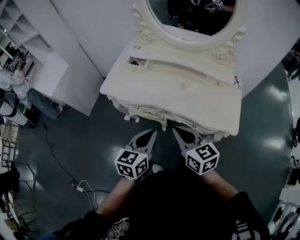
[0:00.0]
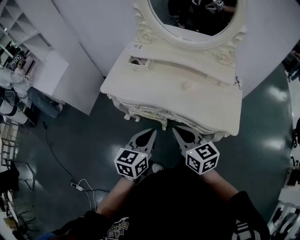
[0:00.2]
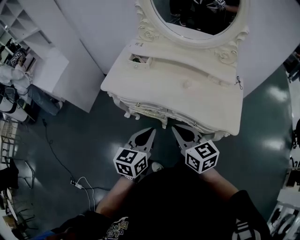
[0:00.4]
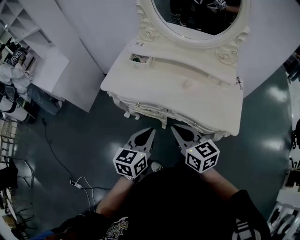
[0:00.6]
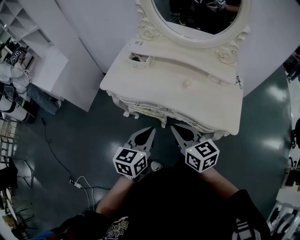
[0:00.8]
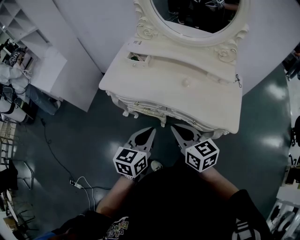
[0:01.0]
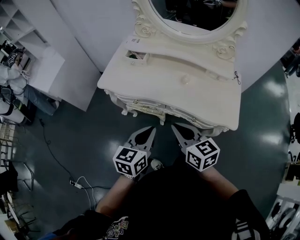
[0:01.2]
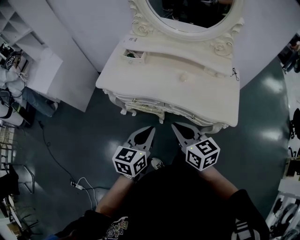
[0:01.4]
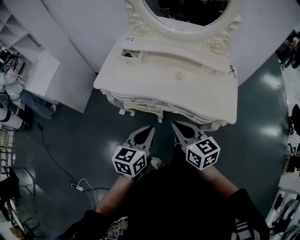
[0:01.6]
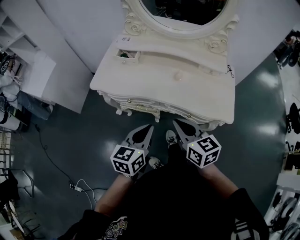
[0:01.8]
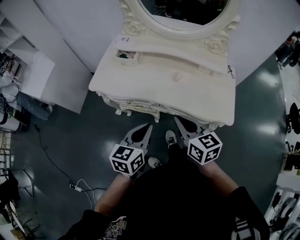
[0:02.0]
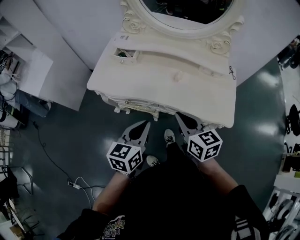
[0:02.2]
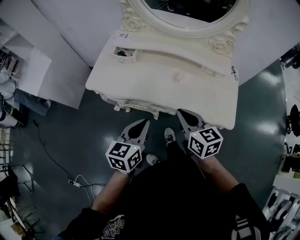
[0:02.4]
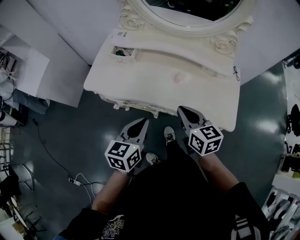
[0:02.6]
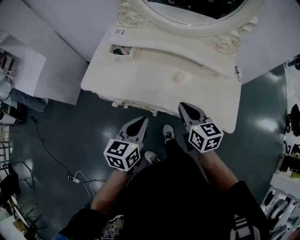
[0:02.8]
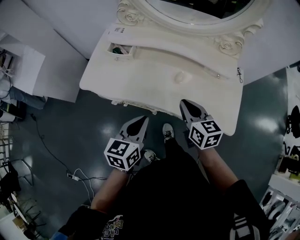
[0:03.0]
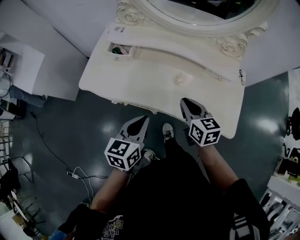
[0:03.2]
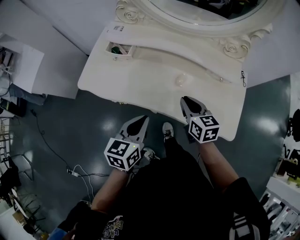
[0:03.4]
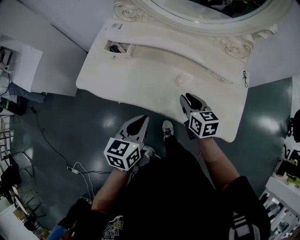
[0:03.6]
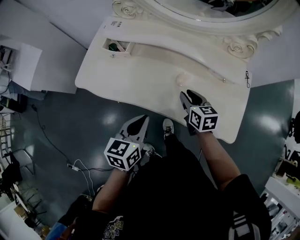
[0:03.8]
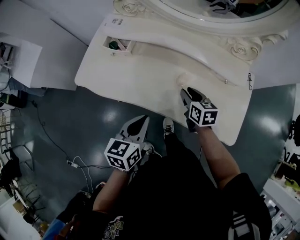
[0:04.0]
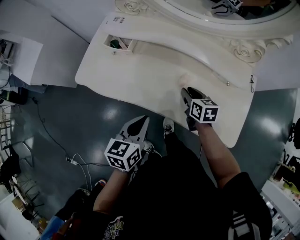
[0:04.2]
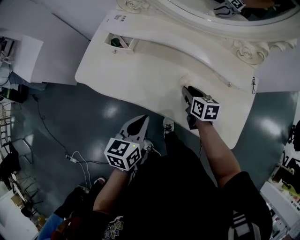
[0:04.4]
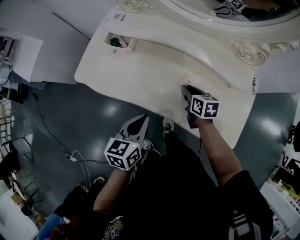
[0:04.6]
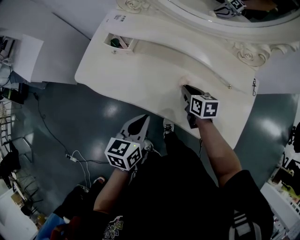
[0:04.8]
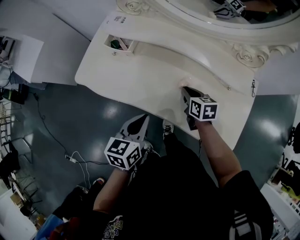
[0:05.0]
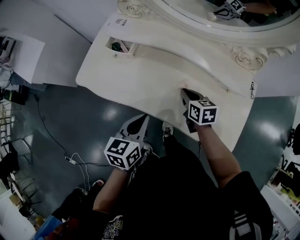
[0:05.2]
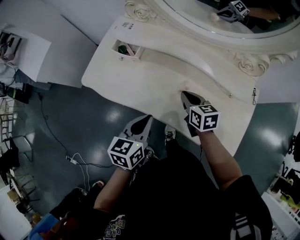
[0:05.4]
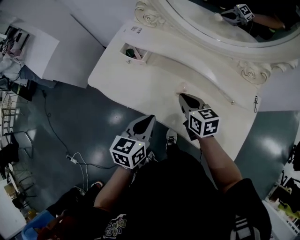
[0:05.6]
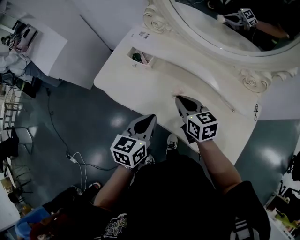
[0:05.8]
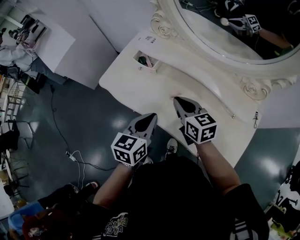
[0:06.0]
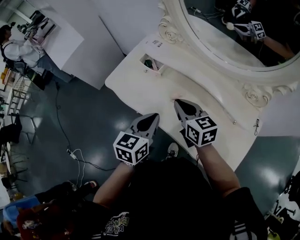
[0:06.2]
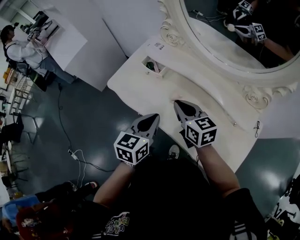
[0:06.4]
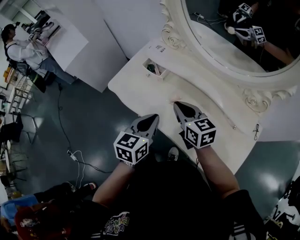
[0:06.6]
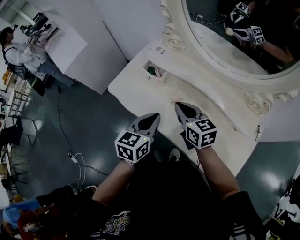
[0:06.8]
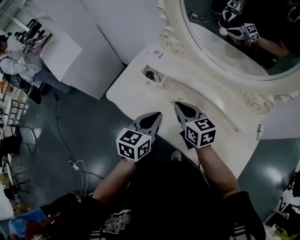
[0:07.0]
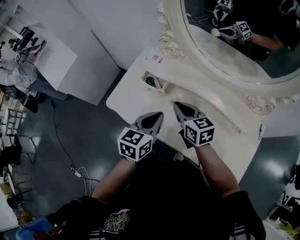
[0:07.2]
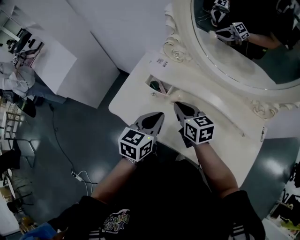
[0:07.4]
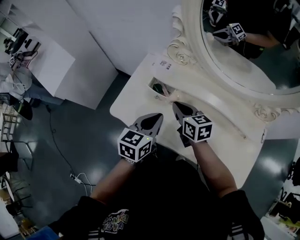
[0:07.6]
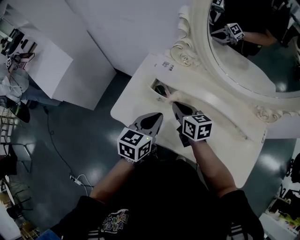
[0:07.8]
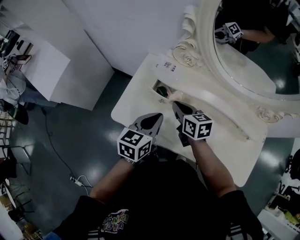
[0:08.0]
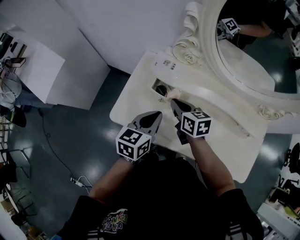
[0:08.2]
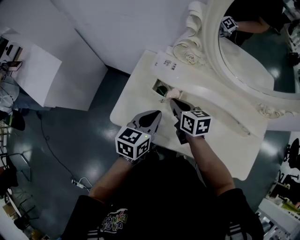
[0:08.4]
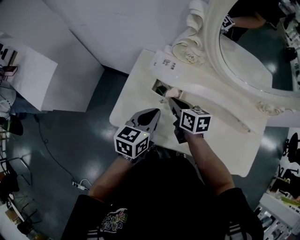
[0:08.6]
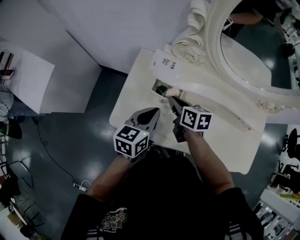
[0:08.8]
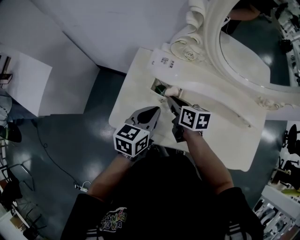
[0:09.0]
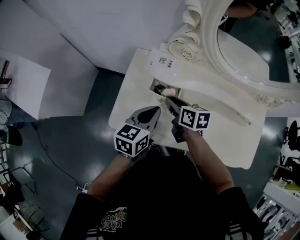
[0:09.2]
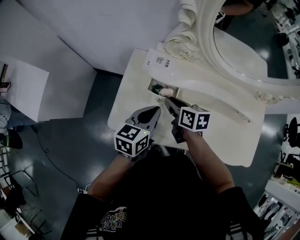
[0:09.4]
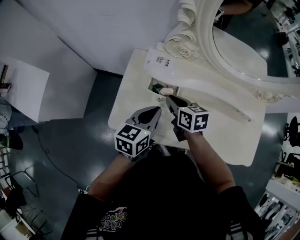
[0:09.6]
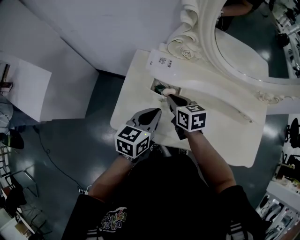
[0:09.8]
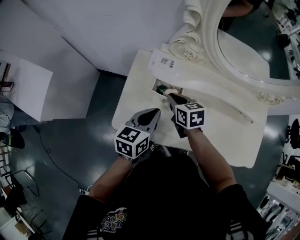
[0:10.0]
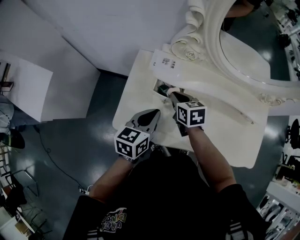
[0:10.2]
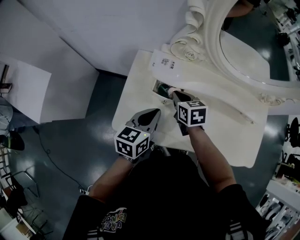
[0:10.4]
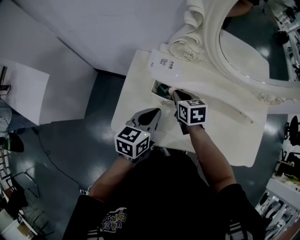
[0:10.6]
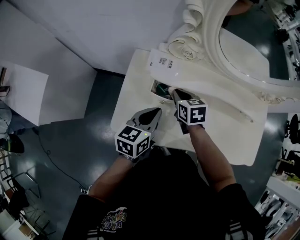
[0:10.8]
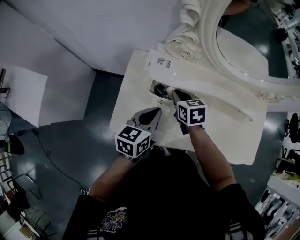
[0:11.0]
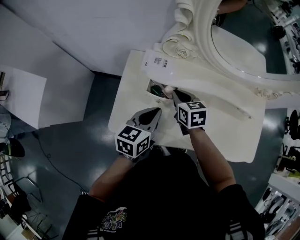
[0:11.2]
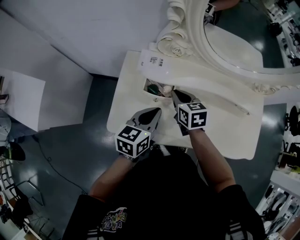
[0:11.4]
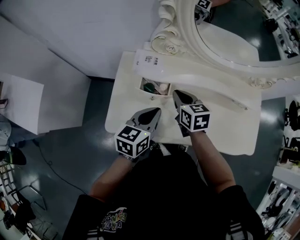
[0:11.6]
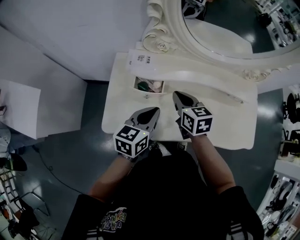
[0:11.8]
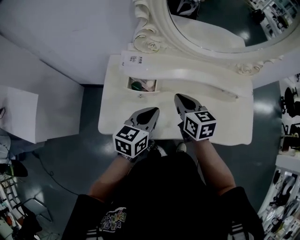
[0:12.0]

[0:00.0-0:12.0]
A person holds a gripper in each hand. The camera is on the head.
0:00.0 to 0:01.6: The grippers stay close to where they were, moving slightly.
0:01.6 to 0:03.0: The right gripper moves forward and to the right, approximately 20 cm, while the left gripper is displaced forward by approximately 15 cm.
0:03.0 to 0:04.4: The left gripper shifts by some 5 cm, while the right gripper moves downward and forward, roughly 20 cm, and opens.
0:04.4 to 0:06.0: The right gripper shifts roughly 20 cm upward and to the left, changes its angle by some 30 degrees, and closes up. The left gripper heads upward and forward, covering roughly 10 cm.
0:06.0 to 0:07.6: The grippers both shift forward and to the left by approximately 15 cm.
0:07.6 to 0:09.0: The right gripper moves downward, forward and to the left, some 10 cm, and rotates roughly 30 degrees. Meanwhile the left gripper is displaced forward and to the left by approximately 10 cm.
0:09.0 to 0:10.4: The right gripper turns by about 20 degrees.
0:10.4 to 0:12.0: The left gripper goes about 10 cm to the right. The right gripper is displaced to the right, upward and backward by some 15 cm.

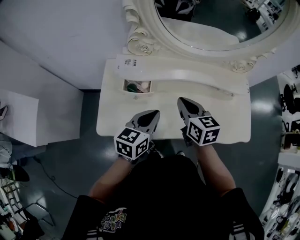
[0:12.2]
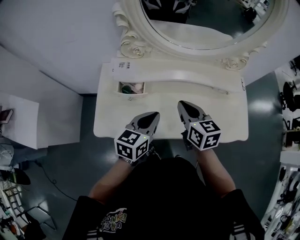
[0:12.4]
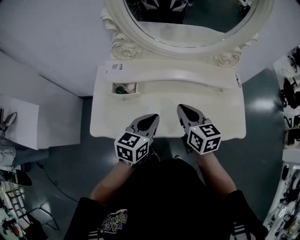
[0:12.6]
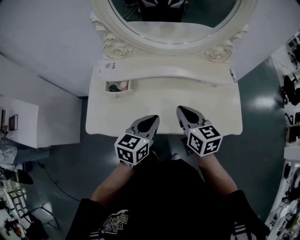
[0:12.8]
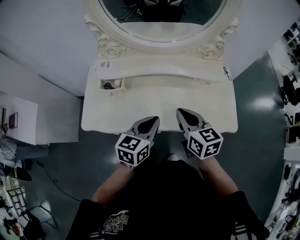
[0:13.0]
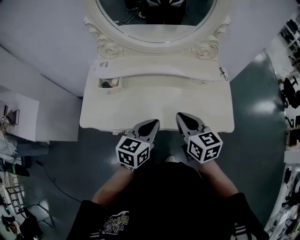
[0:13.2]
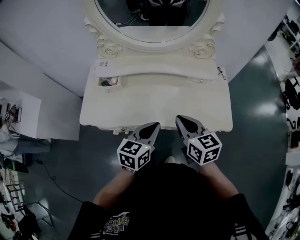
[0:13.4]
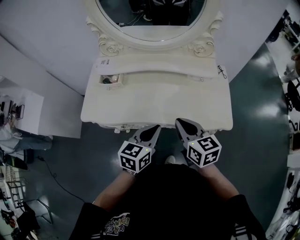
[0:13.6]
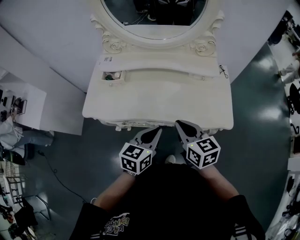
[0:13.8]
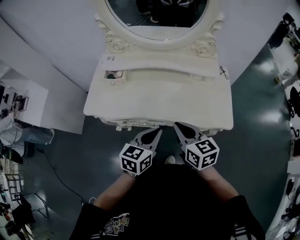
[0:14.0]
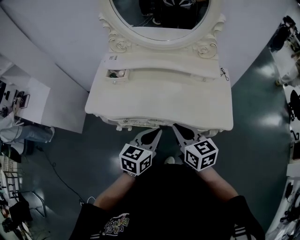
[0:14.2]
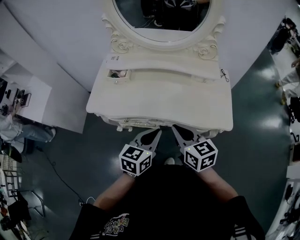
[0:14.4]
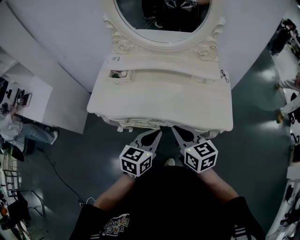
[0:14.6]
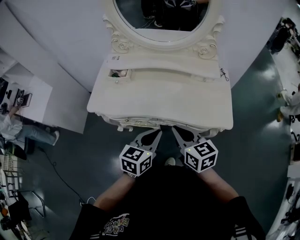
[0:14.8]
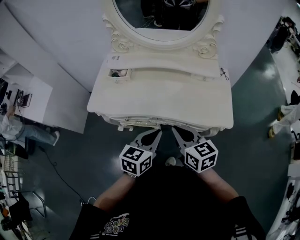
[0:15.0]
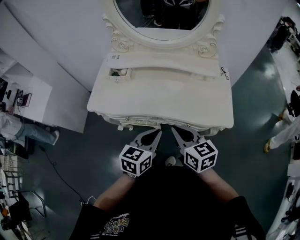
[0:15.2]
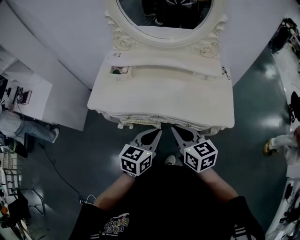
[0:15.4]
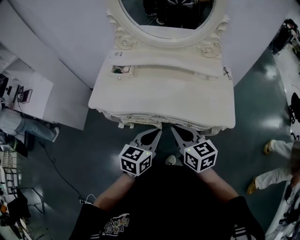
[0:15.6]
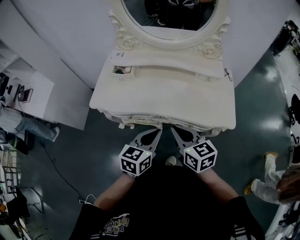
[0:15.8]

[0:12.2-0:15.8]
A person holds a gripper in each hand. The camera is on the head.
0:12.2 to 0:14.0: The right gripper moves backward and to the right, approximately 30 cm; the left gripper is displaced to the right and backward by approximately 30 cm.
0:14.0 to 0:15.8: The left gripper shifts by roughly 5 cm. Meanwhile the right gripper shifts by some 5 cm.

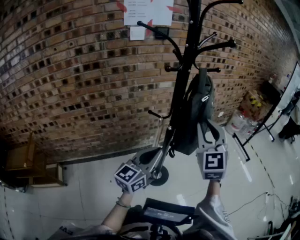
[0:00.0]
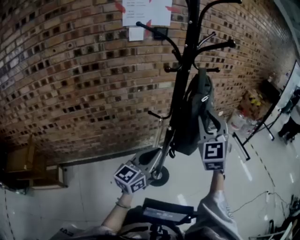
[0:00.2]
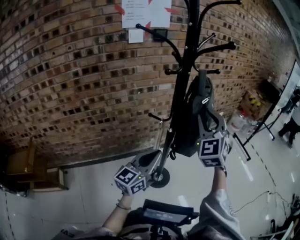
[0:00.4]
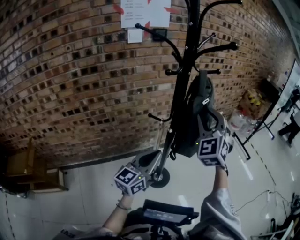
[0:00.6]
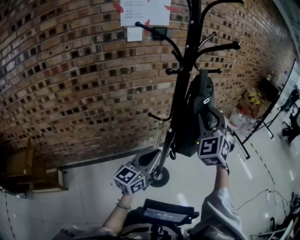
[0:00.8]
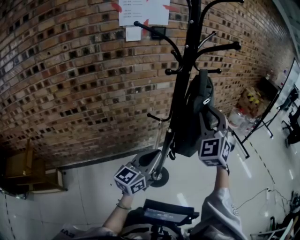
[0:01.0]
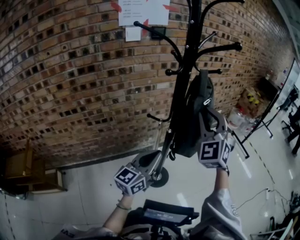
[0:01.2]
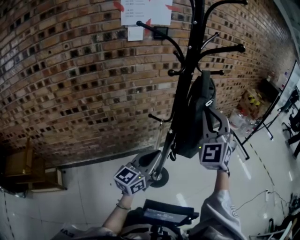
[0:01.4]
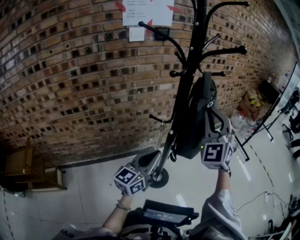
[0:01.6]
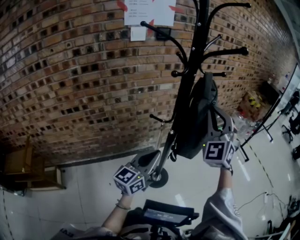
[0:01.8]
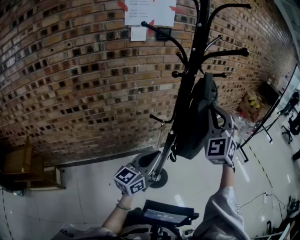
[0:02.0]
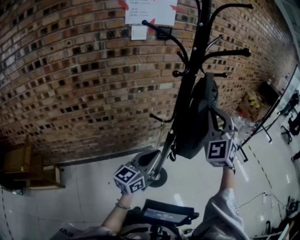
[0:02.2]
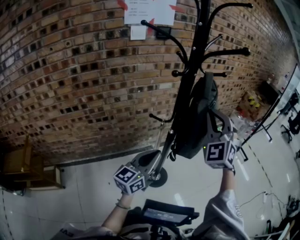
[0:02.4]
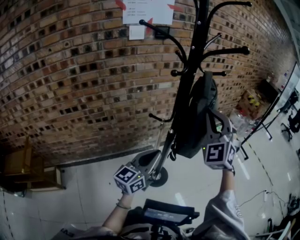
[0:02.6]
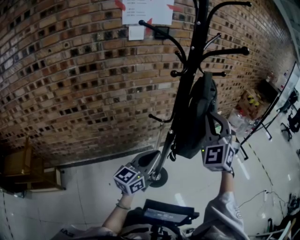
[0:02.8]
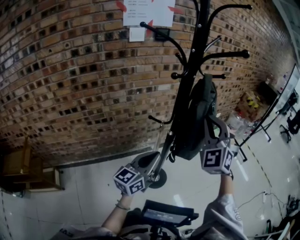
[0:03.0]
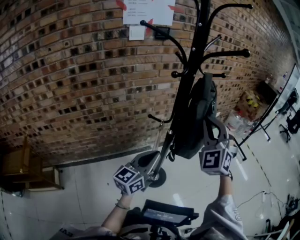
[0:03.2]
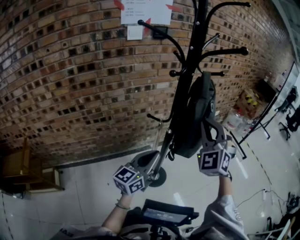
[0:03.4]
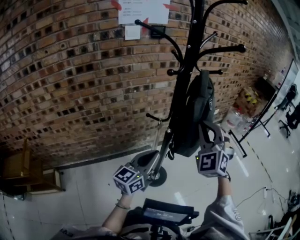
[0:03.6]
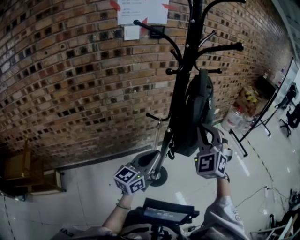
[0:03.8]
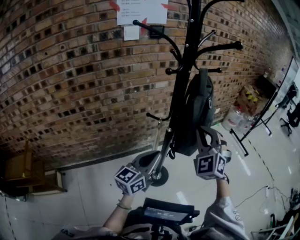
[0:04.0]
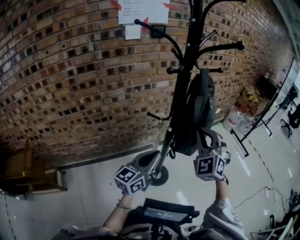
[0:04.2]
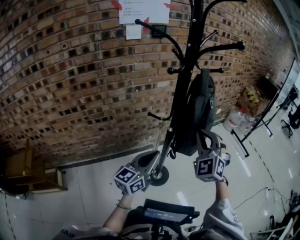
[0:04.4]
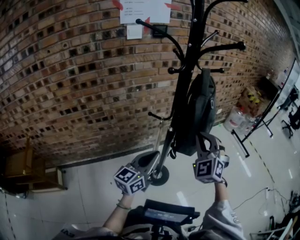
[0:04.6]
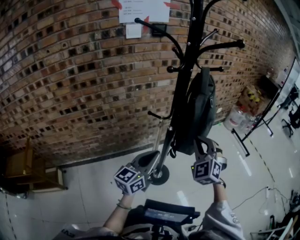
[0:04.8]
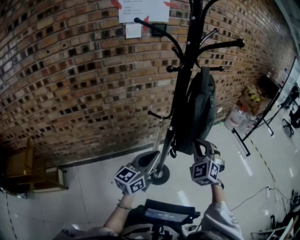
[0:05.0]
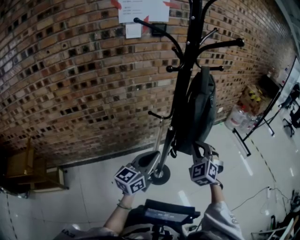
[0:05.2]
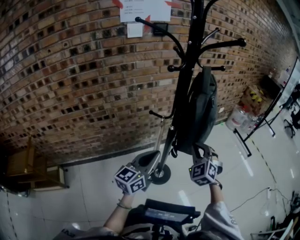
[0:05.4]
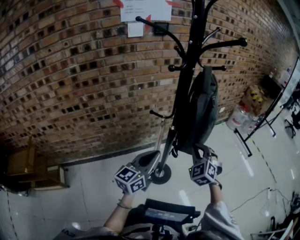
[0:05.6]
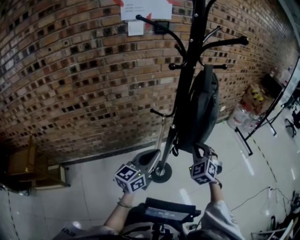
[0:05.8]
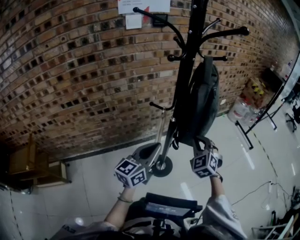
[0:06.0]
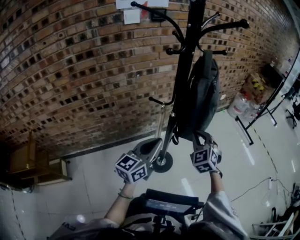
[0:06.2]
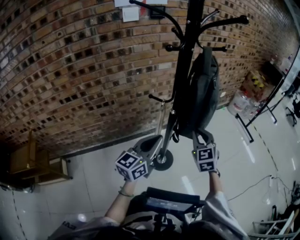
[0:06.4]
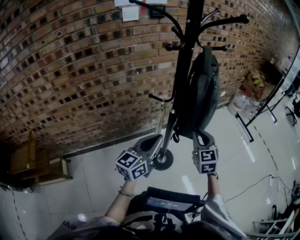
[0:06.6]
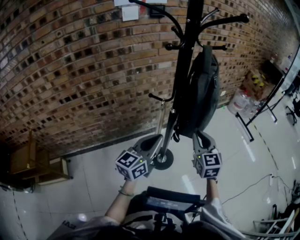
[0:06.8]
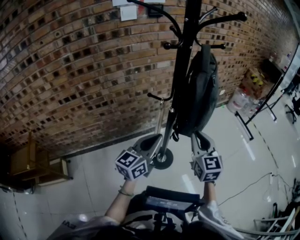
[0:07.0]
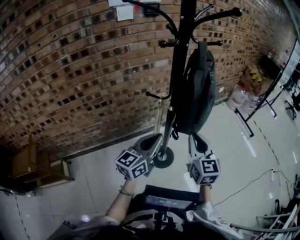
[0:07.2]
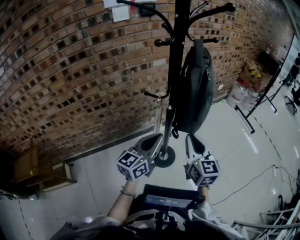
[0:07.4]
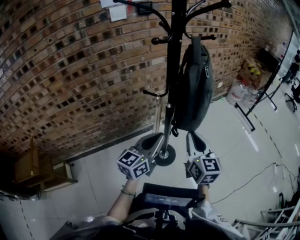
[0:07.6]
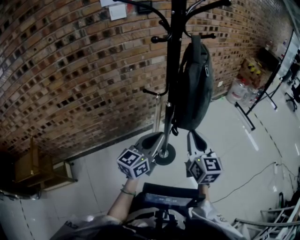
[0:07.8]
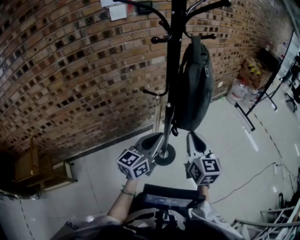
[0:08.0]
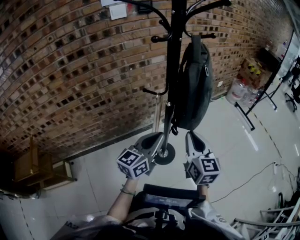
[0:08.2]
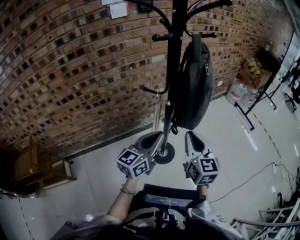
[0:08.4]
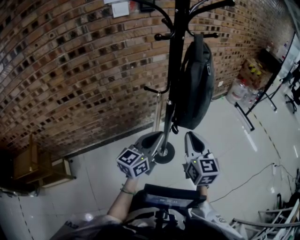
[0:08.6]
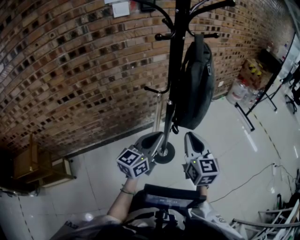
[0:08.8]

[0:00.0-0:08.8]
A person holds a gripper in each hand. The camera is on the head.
0:00.0 to 0:01.4: The right gripper shifts by approximately 5 cm, and changes its angle by roughly 20 degrees.
0:01.4 to 0:03.0: The grippers stay close to where they were, moving slightly.
0:03.0 to 0:04.4: The right gripper travels downward by roughly 10 cm.
0:04.4 to 0:05.8: The right gripper shifts approximately 15 cm downward.
0:05.8 to 0:07.4: The right gripper is displaced backward by some 10 cm, and rotates around the line of its fingers by some 60 degrees, clockwise from behind.
0:07.4 to 0:08.8: The two grippers keep their place.
